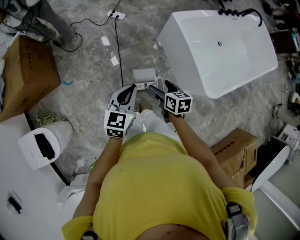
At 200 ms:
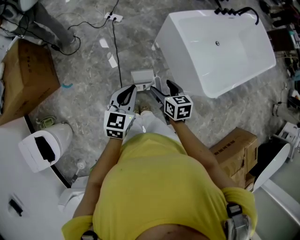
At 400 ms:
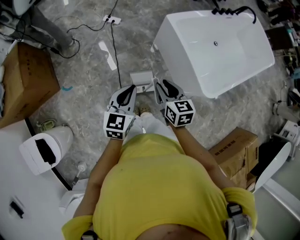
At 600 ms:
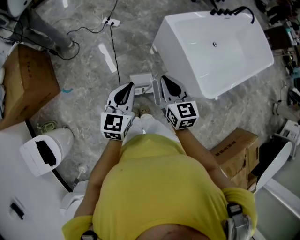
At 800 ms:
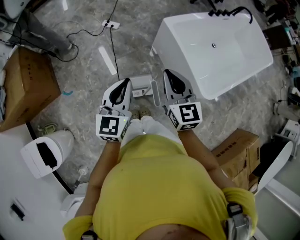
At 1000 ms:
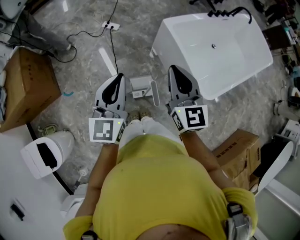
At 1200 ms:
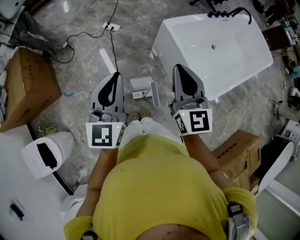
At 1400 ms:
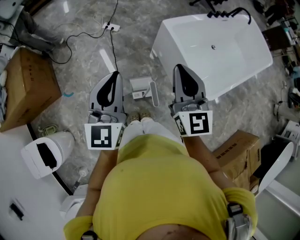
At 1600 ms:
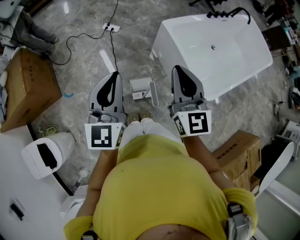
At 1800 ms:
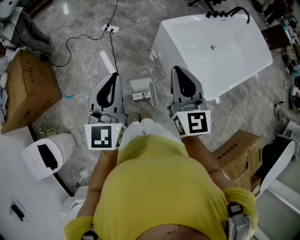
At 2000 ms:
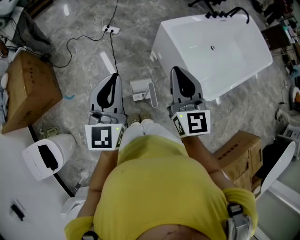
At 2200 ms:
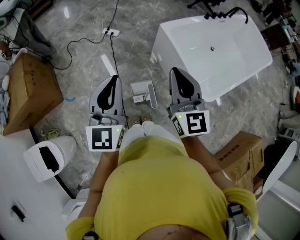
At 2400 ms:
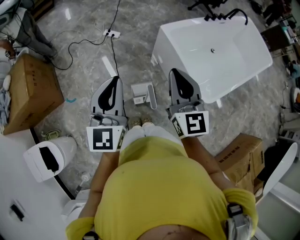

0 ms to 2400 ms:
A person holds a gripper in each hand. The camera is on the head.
0 ms to 1200 ms: The right gripper moves upward, roughly 30 cm, points its fingers approximately 40 degrees further upward, and closes up, while the left gripper moves upward, roughly 20 cm, and turns by about 30 degrees.
1200 ms to 2400 ms: There are only small adjustments of the grippers.

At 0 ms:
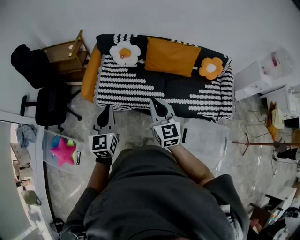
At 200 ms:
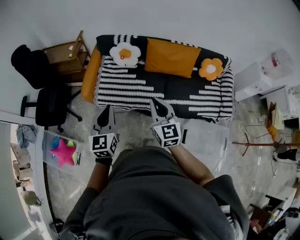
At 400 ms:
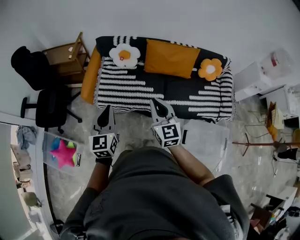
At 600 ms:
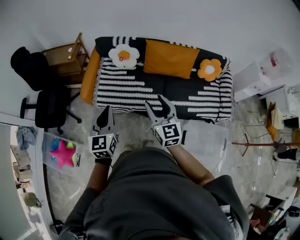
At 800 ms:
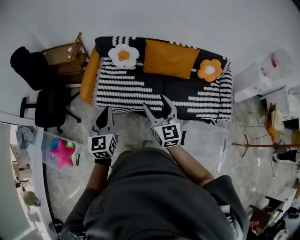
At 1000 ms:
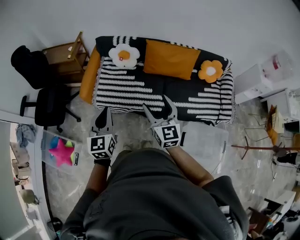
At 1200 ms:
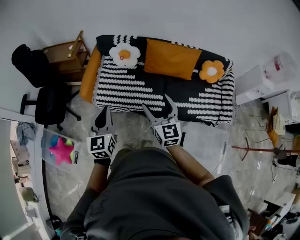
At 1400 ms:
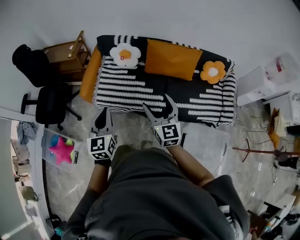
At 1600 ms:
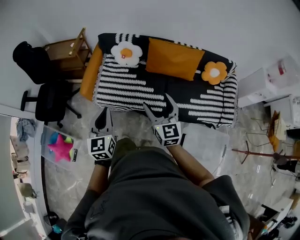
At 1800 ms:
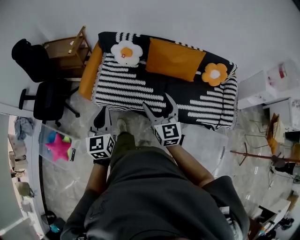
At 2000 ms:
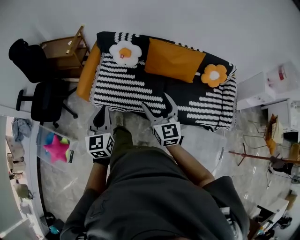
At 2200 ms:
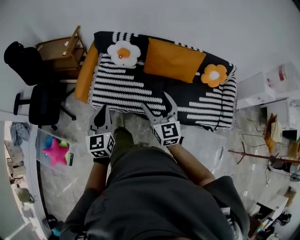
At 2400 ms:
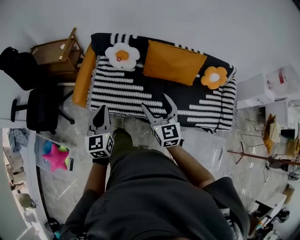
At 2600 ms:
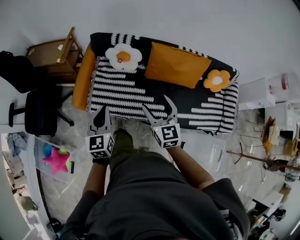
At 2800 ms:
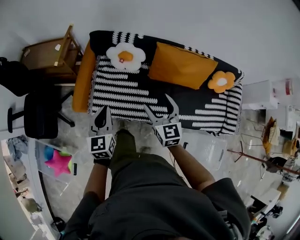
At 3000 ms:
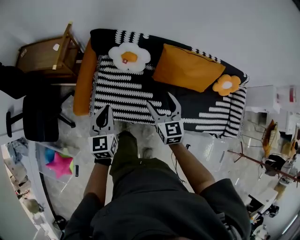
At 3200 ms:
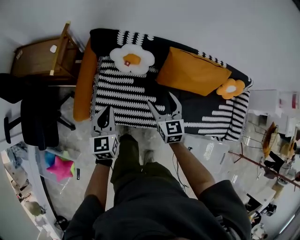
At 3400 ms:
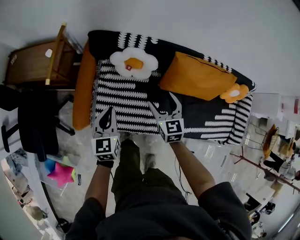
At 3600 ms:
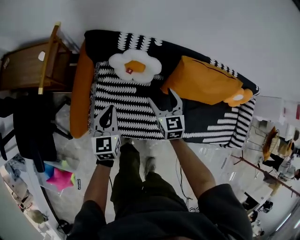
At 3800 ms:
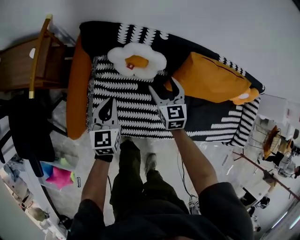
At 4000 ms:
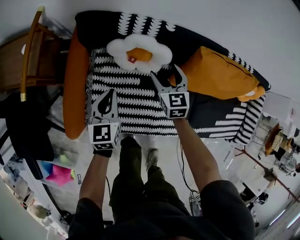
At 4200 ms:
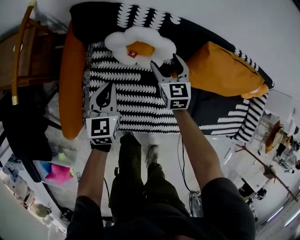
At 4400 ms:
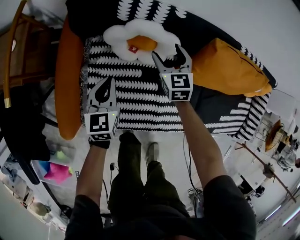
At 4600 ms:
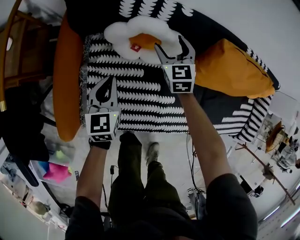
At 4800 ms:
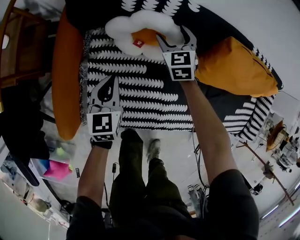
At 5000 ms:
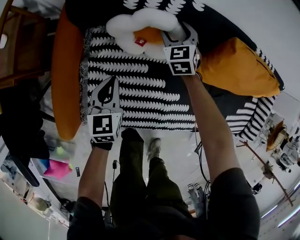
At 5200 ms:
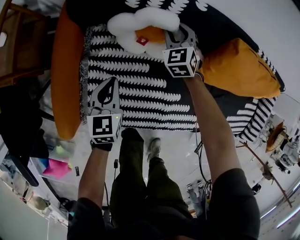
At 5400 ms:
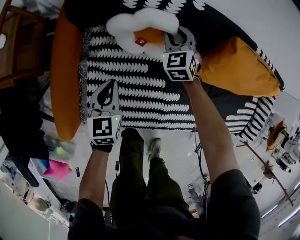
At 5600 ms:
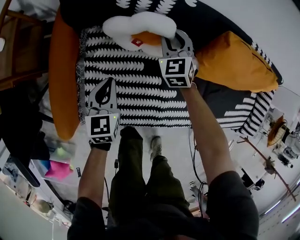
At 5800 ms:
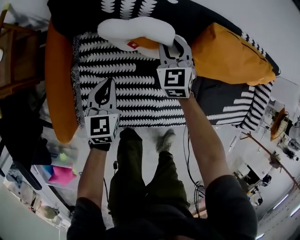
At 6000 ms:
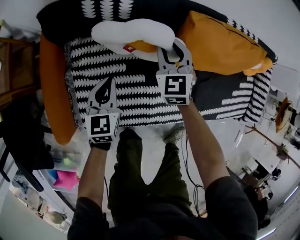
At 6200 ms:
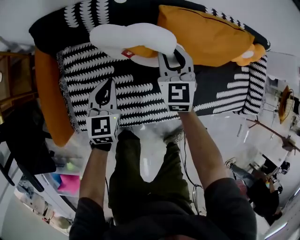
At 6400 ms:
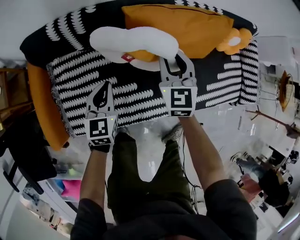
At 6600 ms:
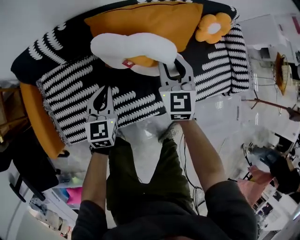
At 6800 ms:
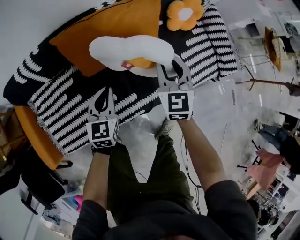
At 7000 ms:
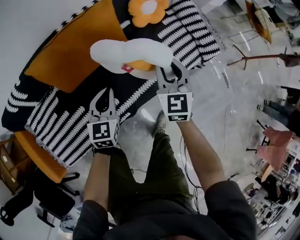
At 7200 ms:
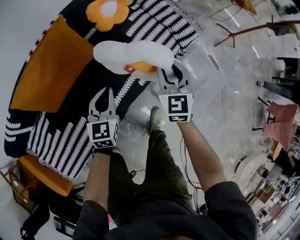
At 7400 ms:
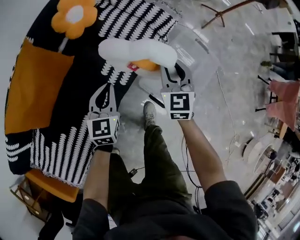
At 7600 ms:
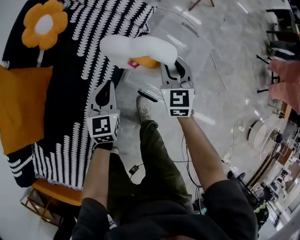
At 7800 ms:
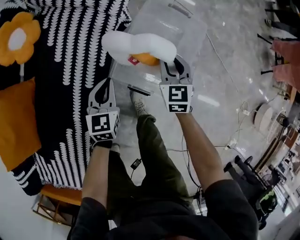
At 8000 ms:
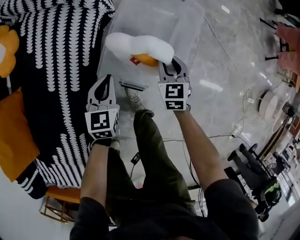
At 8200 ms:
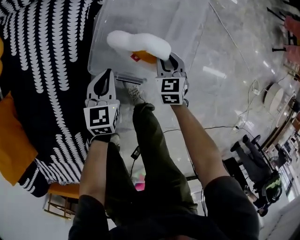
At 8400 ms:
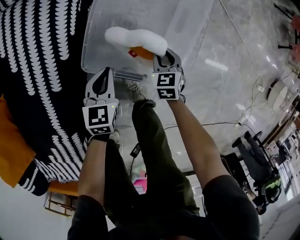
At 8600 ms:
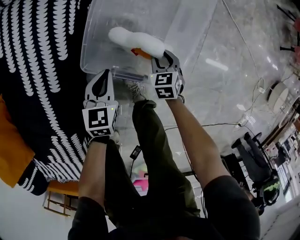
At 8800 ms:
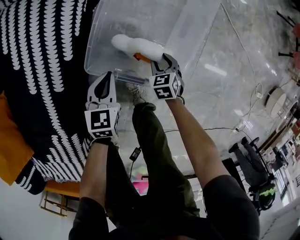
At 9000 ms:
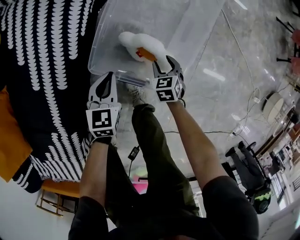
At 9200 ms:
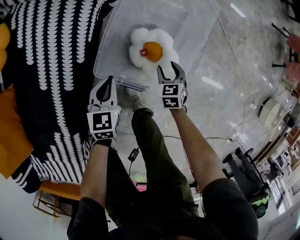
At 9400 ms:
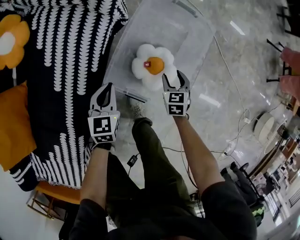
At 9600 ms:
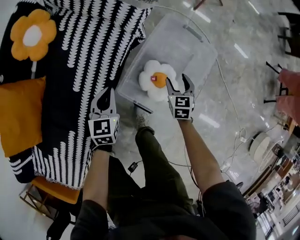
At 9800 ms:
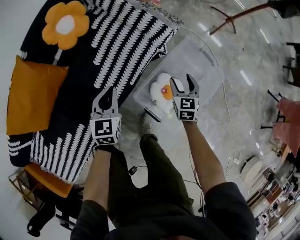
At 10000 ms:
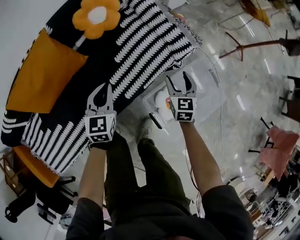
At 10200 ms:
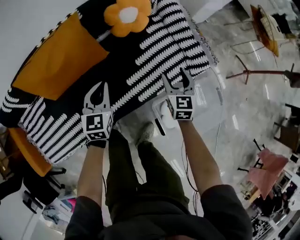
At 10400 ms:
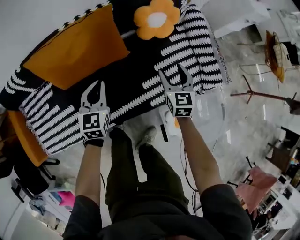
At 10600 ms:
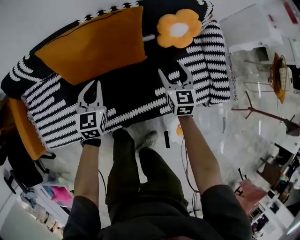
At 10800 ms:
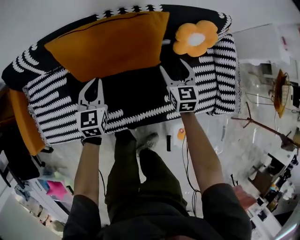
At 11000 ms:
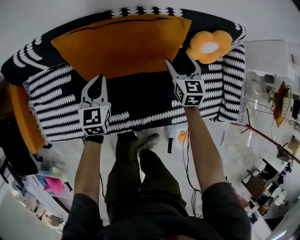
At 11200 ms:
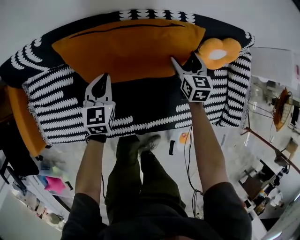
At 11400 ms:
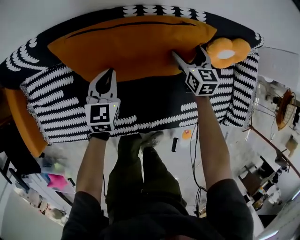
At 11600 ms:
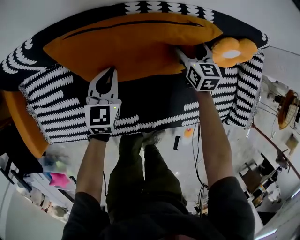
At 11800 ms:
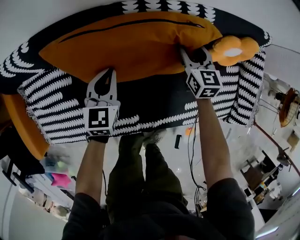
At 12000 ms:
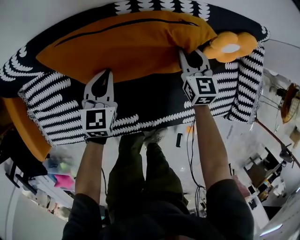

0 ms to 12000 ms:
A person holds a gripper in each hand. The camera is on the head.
0 ms to 1600 ms: The right gripper is displaced to the right by some 5 cm, and opens its fingers.
1600 ms to 3000 ms: Both grippers travel together forward and downward, some 40 cm.
3000 ms to 4400 ms: Both grippers move downward and forward, some 50 cm.
4400 ms to 6000 ms: The left gripper goes some 10 cm to the right. The right gripper is displaced to the right and upward by some 10 cm, and closes.
6000 ms to 7600 ms: The two grippers travel together, approximately 90 cm. The right gripper swivels some 70 degrees. Meanwhile the left gripper changes its angle by approximately 60 degrees.
7600 ms to 9000 ms: Both grippers move downward and to the right, about 40 cm. The left gripper turns by some 20 degrees. Meanwhile the right gripper tilts its fingers roughly 40 degrees downward.
9000 ms to 10400 ms: Both grippers are carried some 50 cm. The right gripper tilts its fingers roughly 40 degrees upward. The left gripper turns by about 60 degrees.
10400 ms to 12000 ms: The left gripper moves to the left, forward and downward, some 30 cm. Meanwhile the right gripper shifts some 40 cm forward and to the left, and closes up.

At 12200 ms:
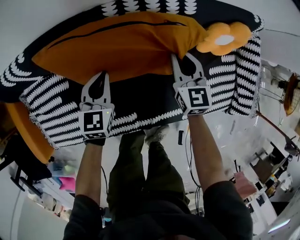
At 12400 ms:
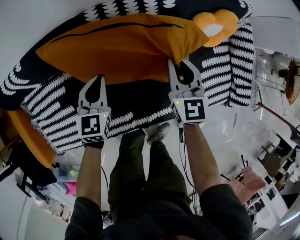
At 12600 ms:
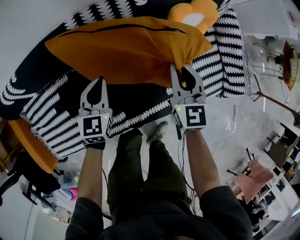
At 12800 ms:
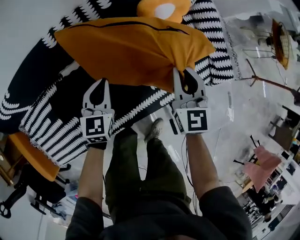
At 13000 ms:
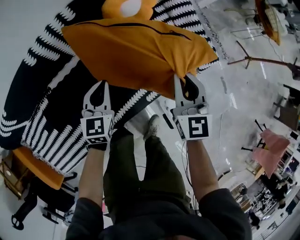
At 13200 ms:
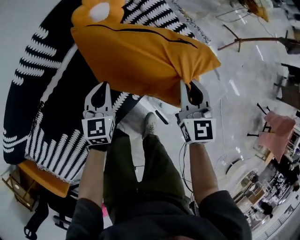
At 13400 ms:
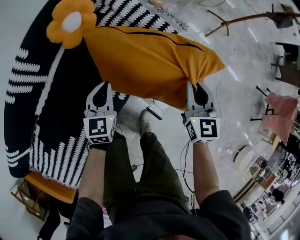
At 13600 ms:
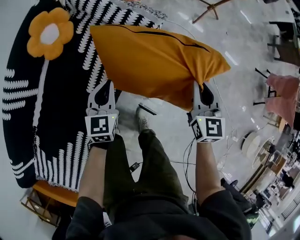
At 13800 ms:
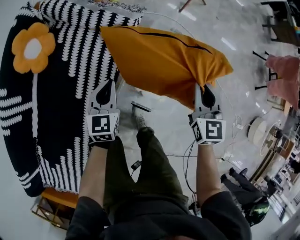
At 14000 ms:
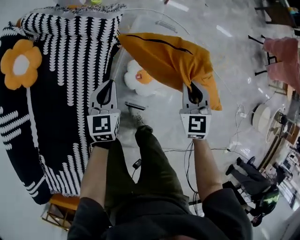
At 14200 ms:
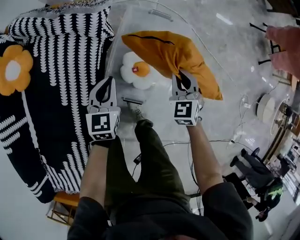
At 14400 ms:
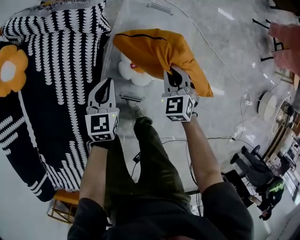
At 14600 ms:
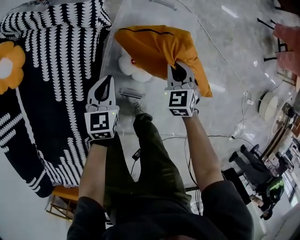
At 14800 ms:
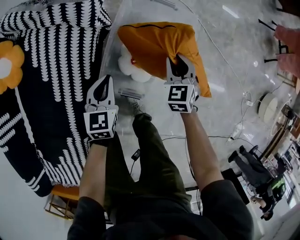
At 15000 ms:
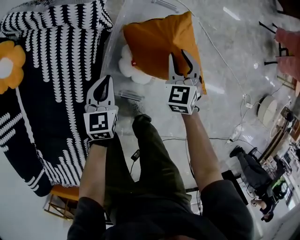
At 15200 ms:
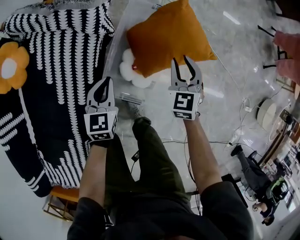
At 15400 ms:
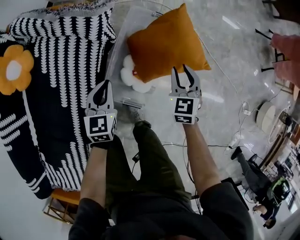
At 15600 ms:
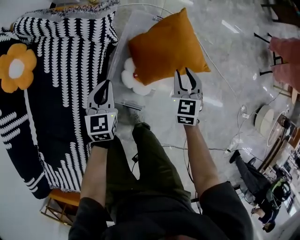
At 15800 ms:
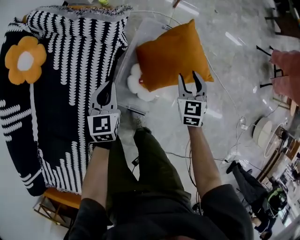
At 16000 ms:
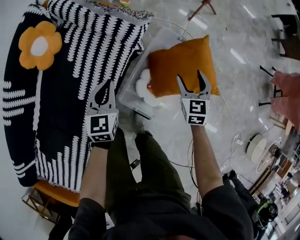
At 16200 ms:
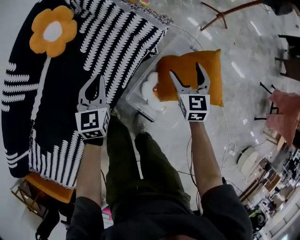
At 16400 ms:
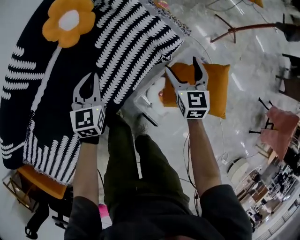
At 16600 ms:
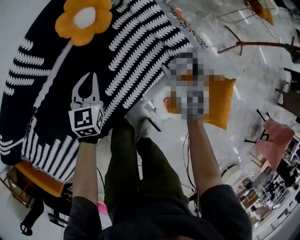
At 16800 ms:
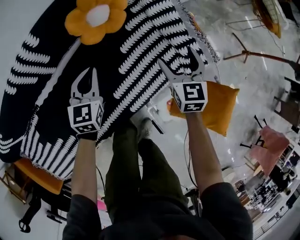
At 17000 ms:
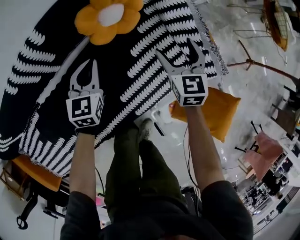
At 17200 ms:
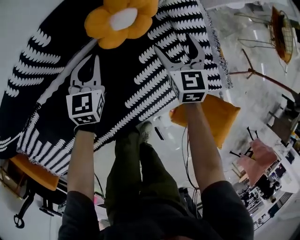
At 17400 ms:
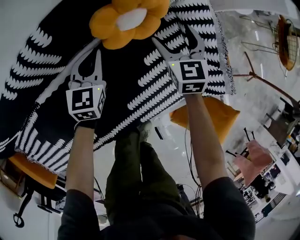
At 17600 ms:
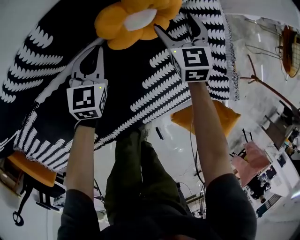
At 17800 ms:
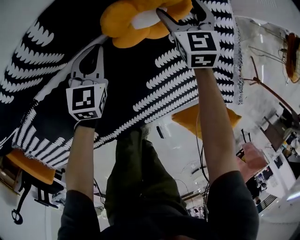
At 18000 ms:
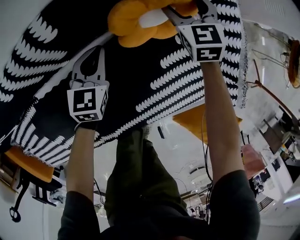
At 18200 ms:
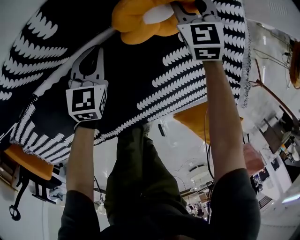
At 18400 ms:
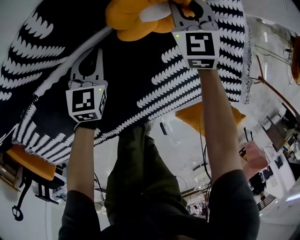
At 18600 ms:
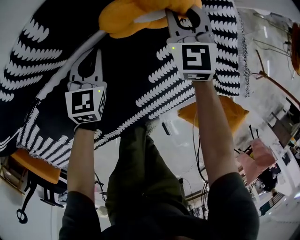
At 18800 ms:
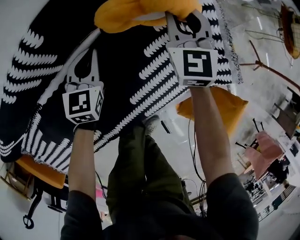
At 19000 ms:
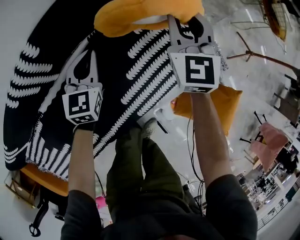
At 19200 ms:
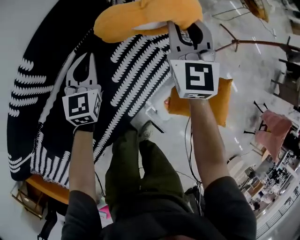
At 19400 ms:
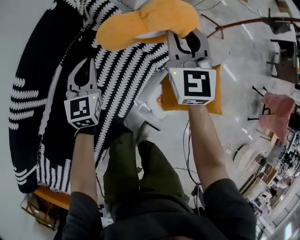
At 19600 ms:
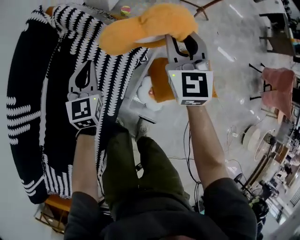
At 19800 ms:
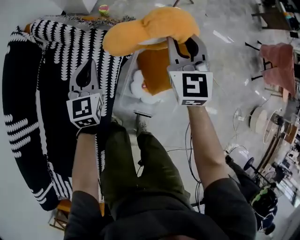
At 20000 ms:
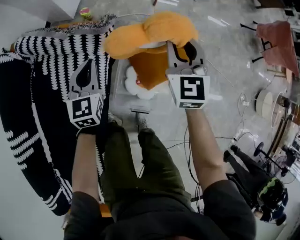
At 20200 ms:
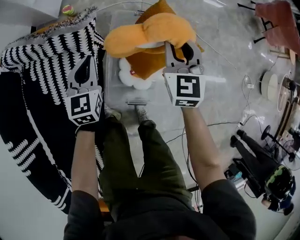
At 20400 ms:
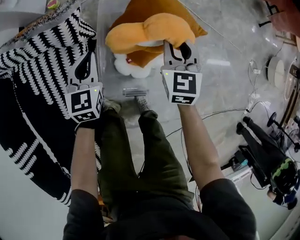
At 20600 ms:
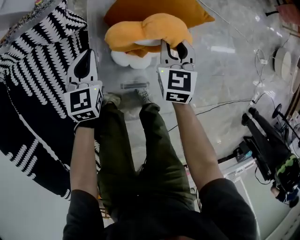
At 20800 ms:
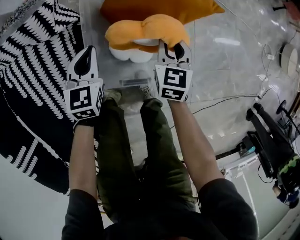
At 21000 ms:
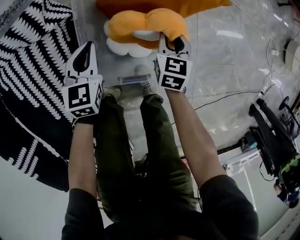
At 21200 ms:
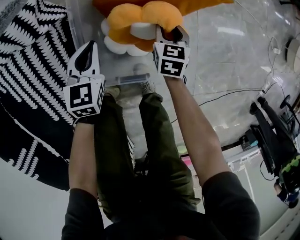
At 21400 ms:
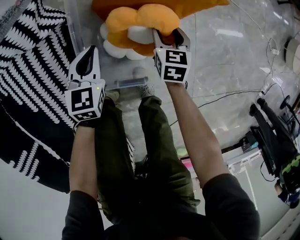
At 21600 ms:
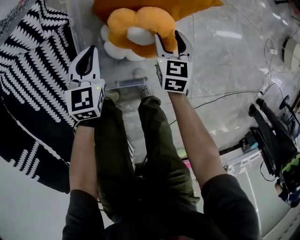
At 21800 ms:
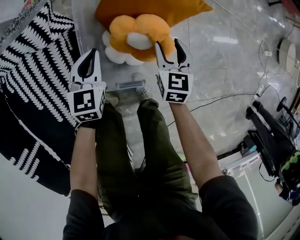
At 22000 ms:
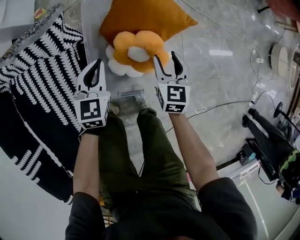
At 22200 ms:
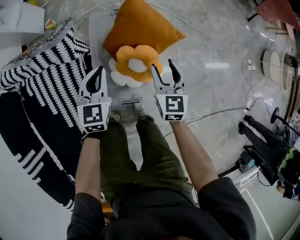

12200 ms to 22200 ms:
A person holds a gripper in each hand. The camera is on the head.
12200 ms to 13600 ms: Both grippers are carried about 70 cm. The right gripper rotates approximately 60 degrees; the left gripper rotates roughly 50 degrees.
13600 ms to 15000 ms: The right gripper travels downward and to the right by roughly 25 cm, and rotates roughly 30 degrees. Meanwhile the left gripper travels to the right and downward by roughly 25 cm.
15000 ms to 16400 ms: The left gripper moves about 35 cm, and changes its angle by approximately 30 degrees. Meanwhile the right gripper changes place by approximately 35 cm, rotates roughly 30 degrees, and opens.
16400 ms to 18000 ms: The left gripper is displaced to the left, forward and downward by roughly 40 cm. Meanwhile the right gripper is displaced forward and to the left by some 60 cm, and turns by about 40 degrees.
18000 ms to 19400 ms: The left gripper moves approximately 40 cm, and rotates about 30 degrees. The right gripper moves approximately 60 cm, changes its angle by some 40 degrees, and closes up.
19400 ms to 20800 ms: The right gripper changes place by some 60 cm, and tilts its fingers approximately 30 degrees downward. Meanwhile the left gripper shifts by roughly 50 cm, and rotates some 50 degrees.
20800 ms to 22200 ms: The grippers both shift upward by approximately 20 cm. The right gripper opens.
